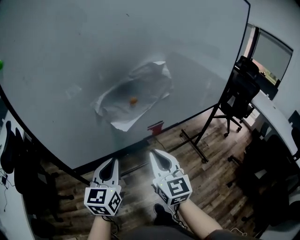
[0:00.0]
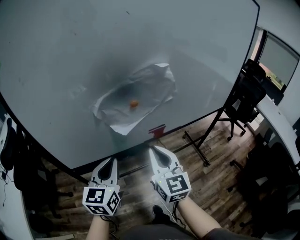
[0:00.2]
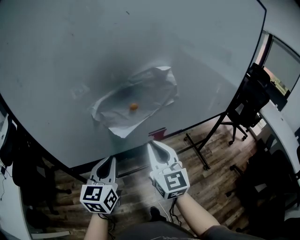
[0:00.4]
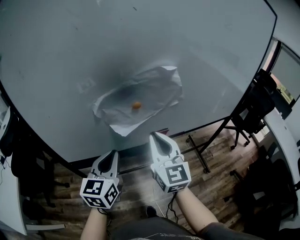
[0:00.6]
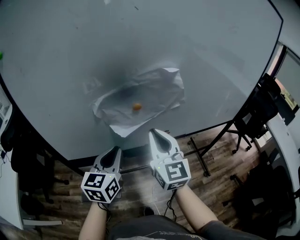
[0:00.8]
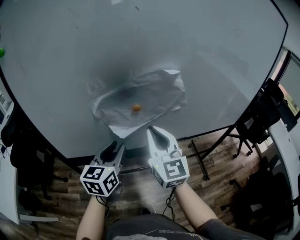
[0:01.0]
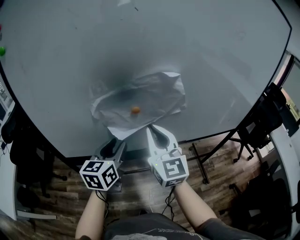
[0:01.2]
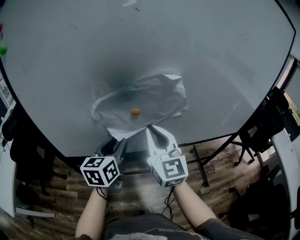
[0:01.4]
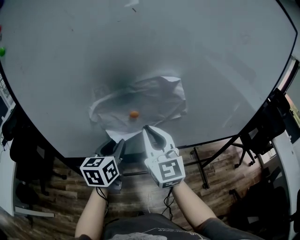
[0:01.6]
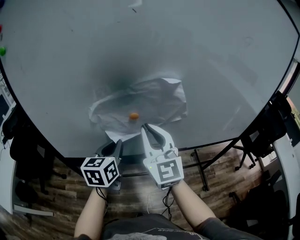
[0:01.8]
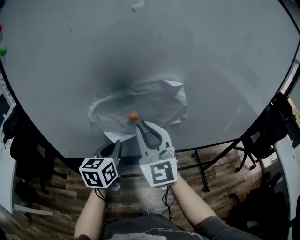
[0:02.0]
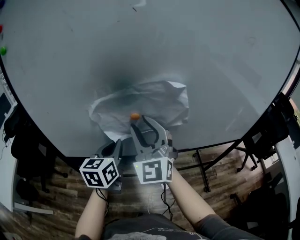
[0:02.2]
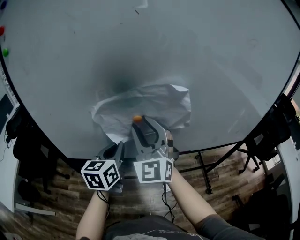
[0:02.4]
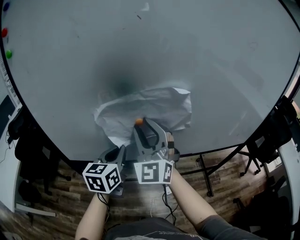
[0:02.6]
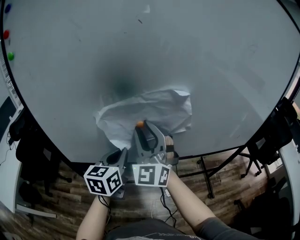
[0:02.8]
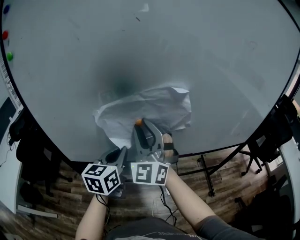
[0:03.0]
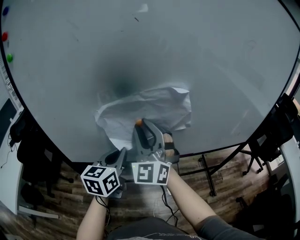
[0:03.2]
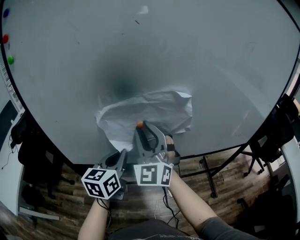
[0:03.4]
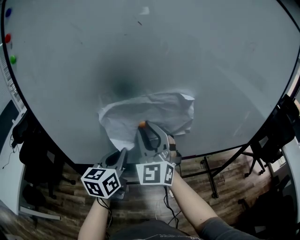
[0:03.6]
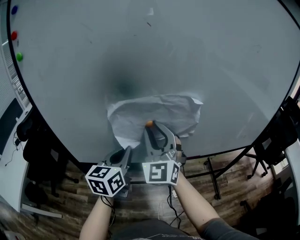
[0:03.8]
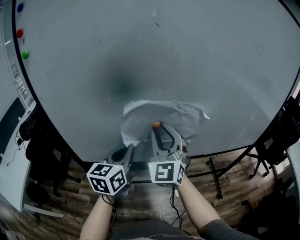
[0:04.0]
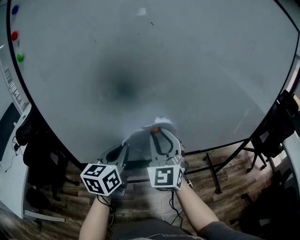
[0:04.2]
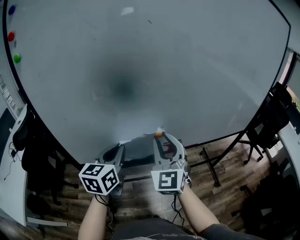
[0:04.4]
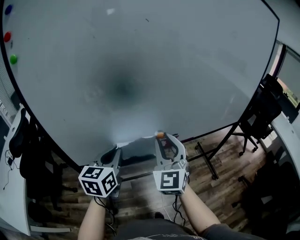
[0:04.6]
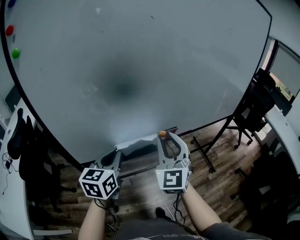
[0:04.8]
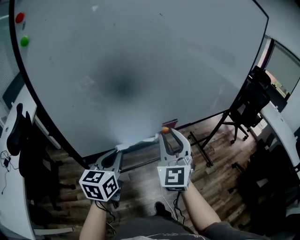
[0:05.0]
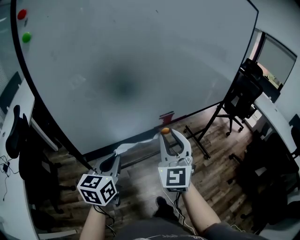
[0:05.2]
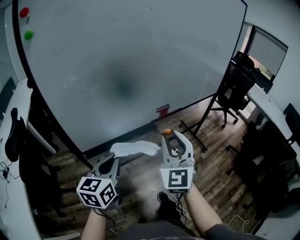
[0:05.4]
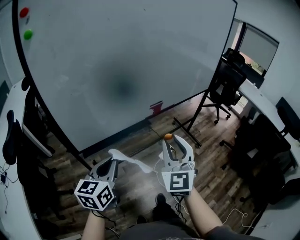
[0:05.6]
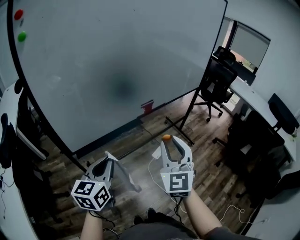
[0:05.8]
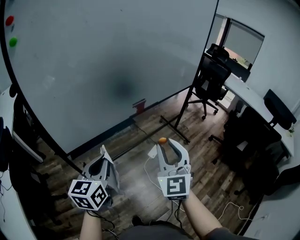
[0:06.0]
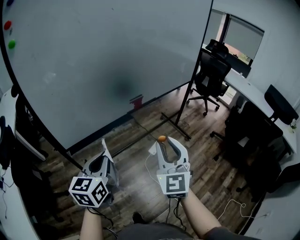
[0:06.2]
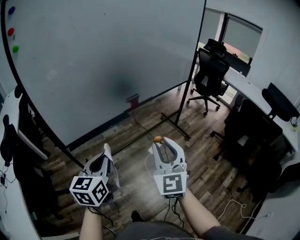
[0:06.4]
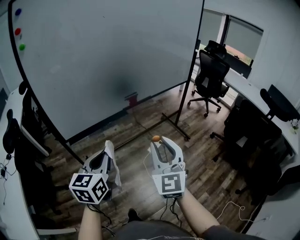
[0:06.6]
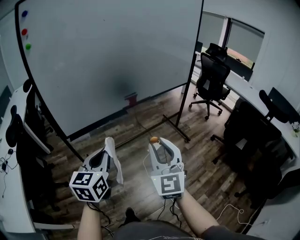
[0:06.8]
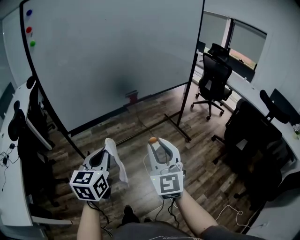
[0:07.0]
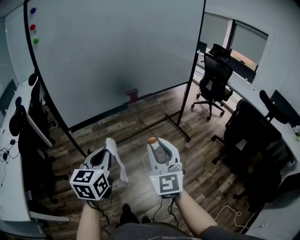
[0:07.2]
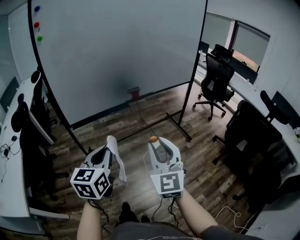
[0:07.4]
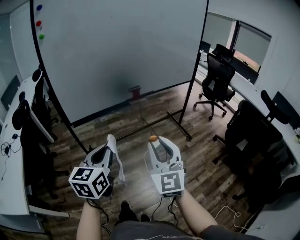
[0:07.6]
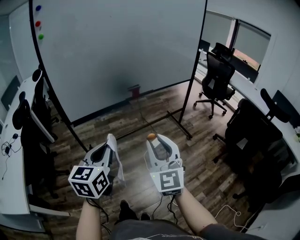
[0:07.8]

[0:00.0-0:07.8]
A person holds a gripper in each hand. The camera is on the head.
0:00.0 to 0:01.6: The left gripper shifts some 15 cm forward and to the right, and opens. The right gripper goes some 15 cm forward and upward, and turns by some 20 degrees.
0:01.6 to 0:03.2: The right gripper ends up approximately 5 cm from where it was, swivels about 40 degrees, and opens its fingers. Meanwhile the left gripper closes up.
0:03.2 to 0:04.6: The left gripper is displaced to the left by some 5 cm; the right gripper moves backward, about 5 cm, and changes its angle by about 20 degrees.
0:04.6 to 0:06.2: The grippers both shift backward by approximately 25 cm. The right gripper swivels roughly 20 degrees.
0:06.2 to 0:07.8: The grippers both shift backward and to the right by approximately 20 cm.

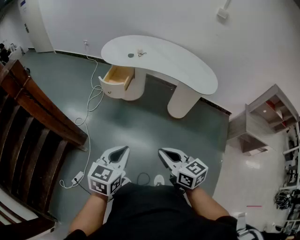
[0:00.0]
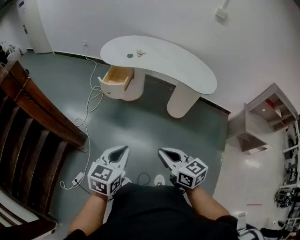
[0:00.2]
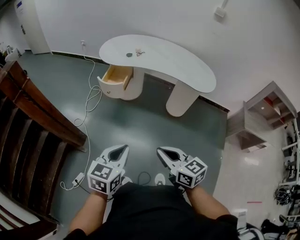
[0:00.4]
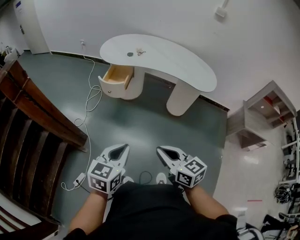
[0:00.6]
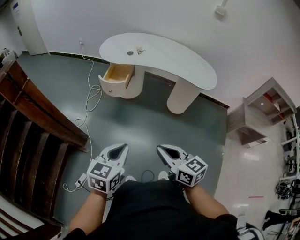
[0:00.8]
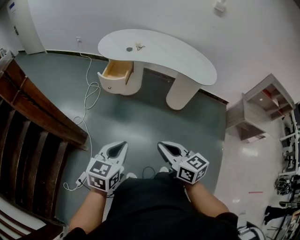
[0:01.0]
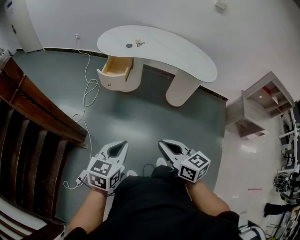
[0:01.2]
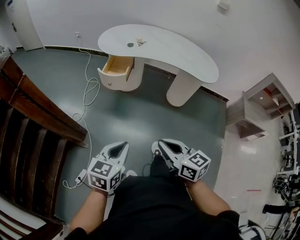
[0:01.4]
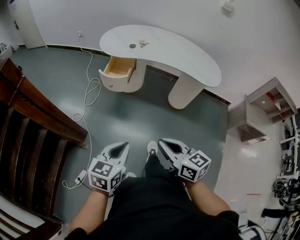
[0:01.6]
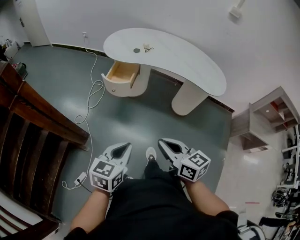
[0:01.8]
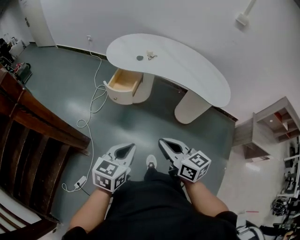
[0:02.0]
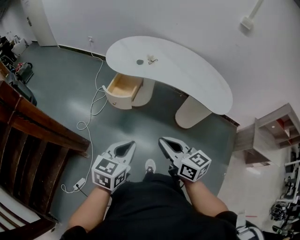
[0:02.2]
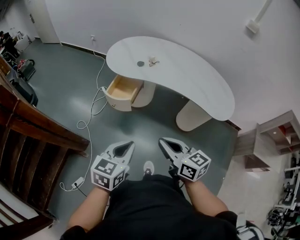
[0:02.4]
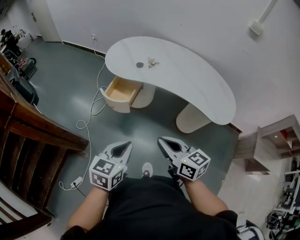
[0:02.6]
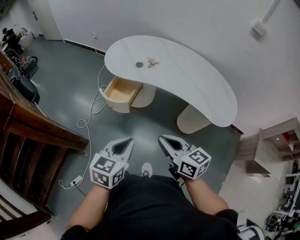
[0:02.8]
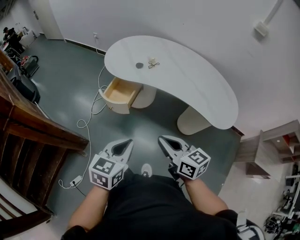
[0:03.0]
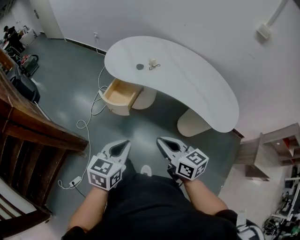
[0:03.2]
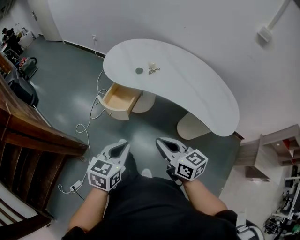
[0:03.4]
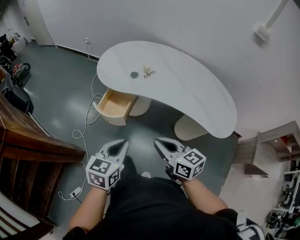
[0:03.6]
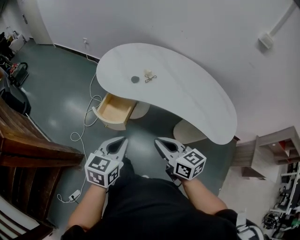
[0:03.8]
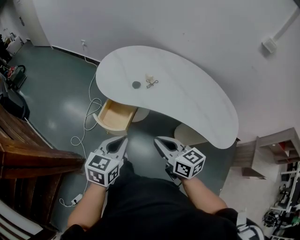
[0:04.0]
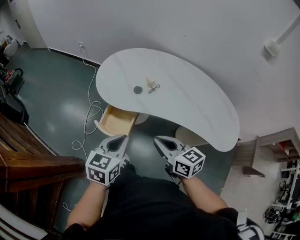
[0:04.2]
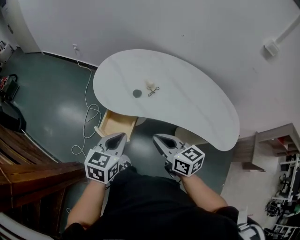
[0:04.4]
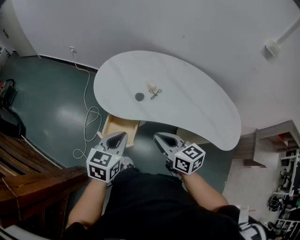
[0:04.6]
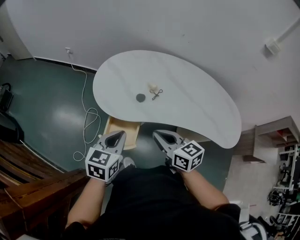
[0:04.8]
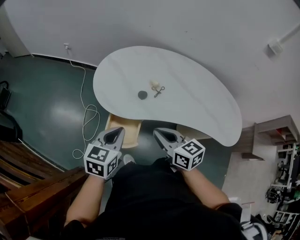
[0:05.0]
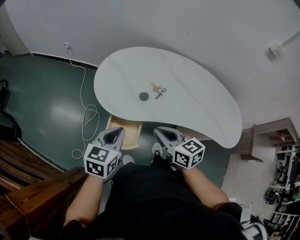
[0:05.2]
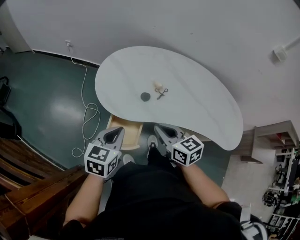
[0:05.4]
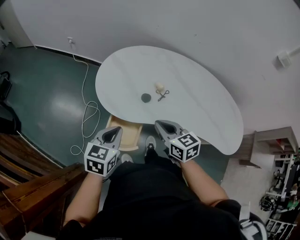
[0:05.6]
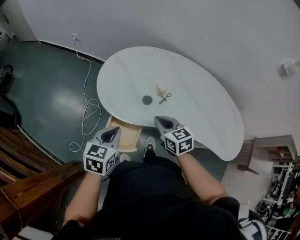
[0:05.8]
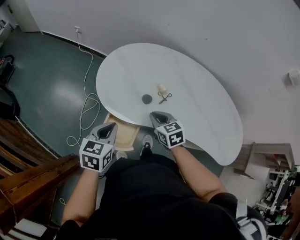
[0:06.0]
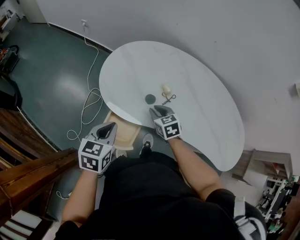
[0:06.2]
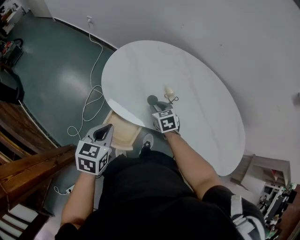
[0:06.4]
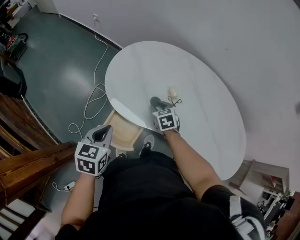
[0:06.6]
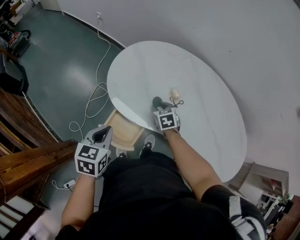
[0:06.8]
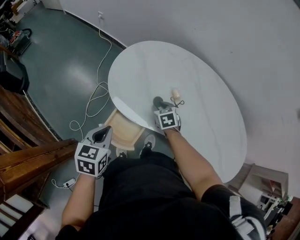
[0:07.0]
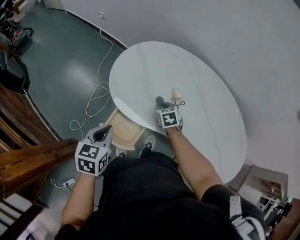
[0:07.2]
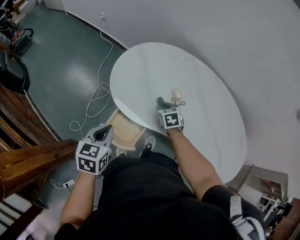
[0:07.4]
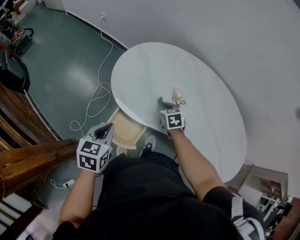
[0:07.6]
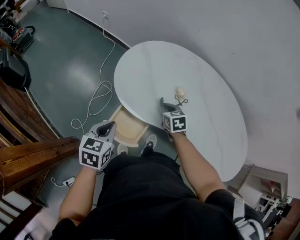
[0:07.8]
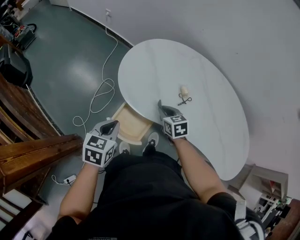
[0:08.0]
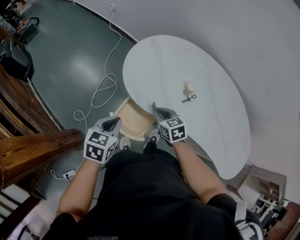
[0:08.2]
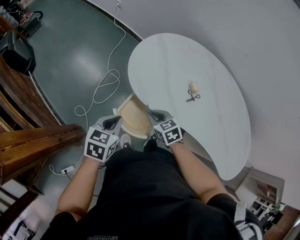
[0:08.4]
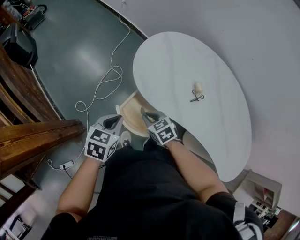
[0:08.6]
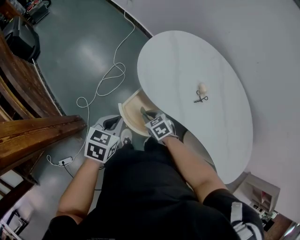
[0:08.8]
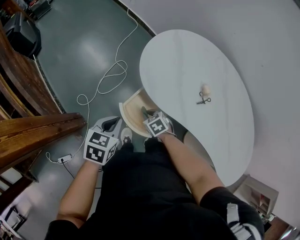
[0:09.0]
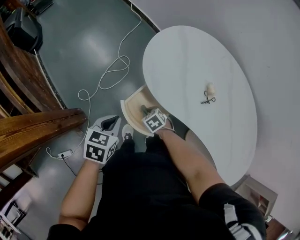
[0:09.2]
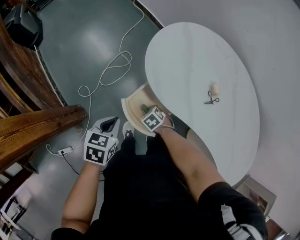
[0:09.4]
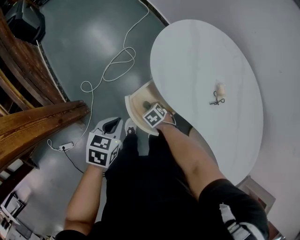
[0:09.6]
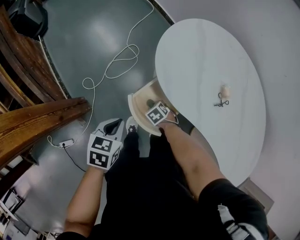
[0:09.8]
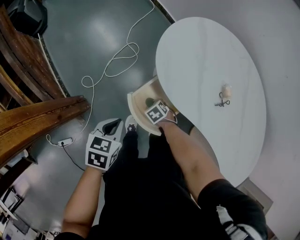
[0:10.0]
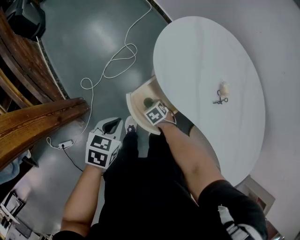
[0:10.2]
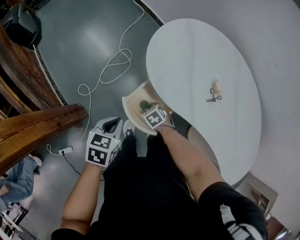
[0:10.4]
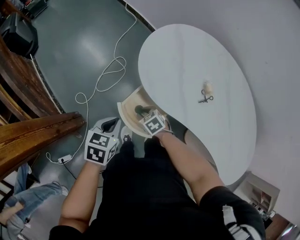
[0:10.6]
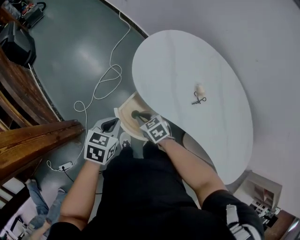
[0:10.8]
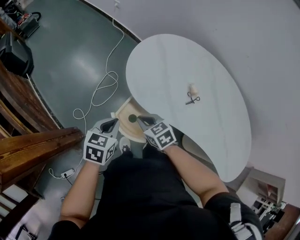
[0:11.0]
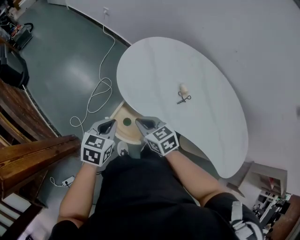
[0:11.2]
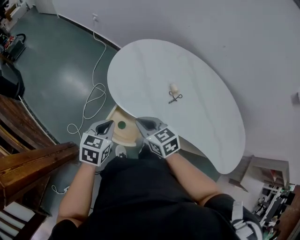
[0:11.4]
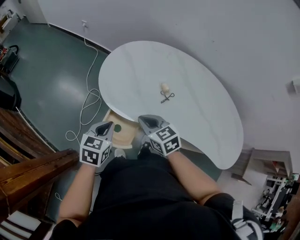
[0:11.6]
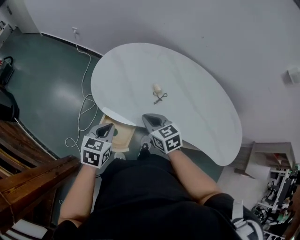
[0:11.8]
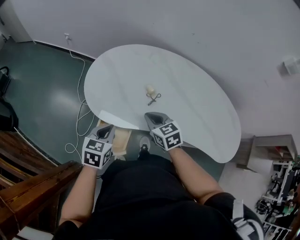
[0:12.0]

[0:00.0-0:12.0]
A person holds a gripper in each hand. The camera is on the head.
0:00.0 to 0:01.6: Both grippers move to the left, about 10 cm.
0:01.6 to 0:03.0: The grippers both shift forward and to the right by roughly 30 cm.
0:03.0 to 0:04.4: The grippers both shift forward by approximately 30 cm.
0:04.4 to 0:06.0: The right gripper is displaced forward and downward by some 25 cm, and rotates approximately 30 degrees. The left gripper heads forward, to the left and downward, covering approximately 15 cm.
0:06.0 to 0:07.6: The right gripper moves forward and downward, some 10 cm. Meanwhile the left gripper ends up approximately 5 cm from where it was.
0:07.6 to 0:09.0: The right gripper is displaced to the left, downward and backward by approximately 25 cm, and swivels roughly 30 degrees. Meanwhile the left gripper is displaced downward and to the left by approximately 10 cm.
0:09.0 to 0:10.4: The left gripper ends up about 5 cm from where it was. Meanwhile the right gripper heads downward, covering some 5 cm.
0:10.4 to 0:12.0: The right gripper is displaced upward by about 30 cm, angles its fingers upward, by approximately 30 degrees, and closes. Meanwhile the left gripper changes place by roughly 20 cm, and changes its angle by about 30 degrees.

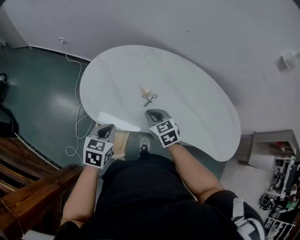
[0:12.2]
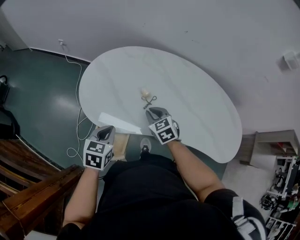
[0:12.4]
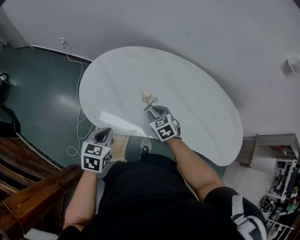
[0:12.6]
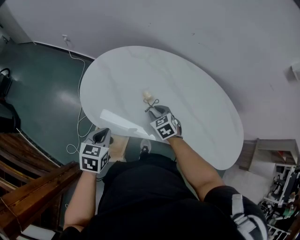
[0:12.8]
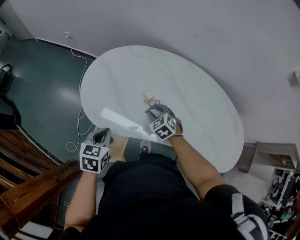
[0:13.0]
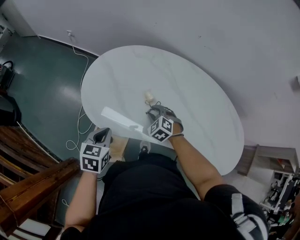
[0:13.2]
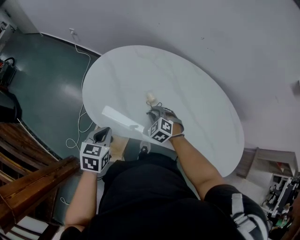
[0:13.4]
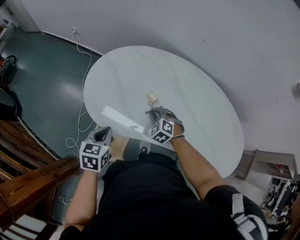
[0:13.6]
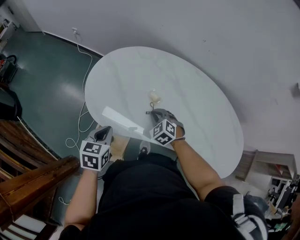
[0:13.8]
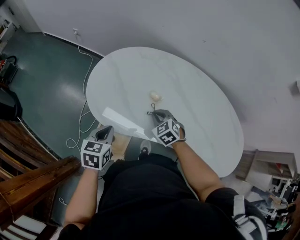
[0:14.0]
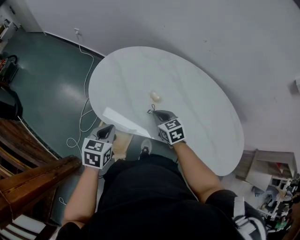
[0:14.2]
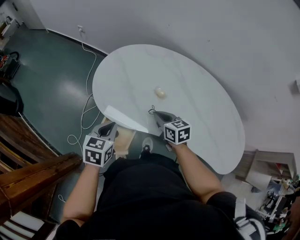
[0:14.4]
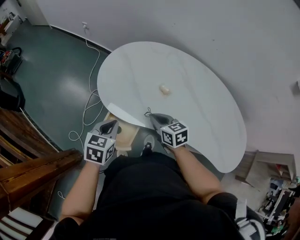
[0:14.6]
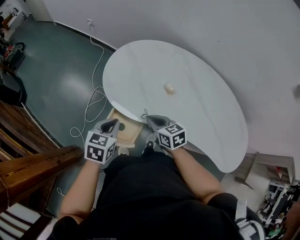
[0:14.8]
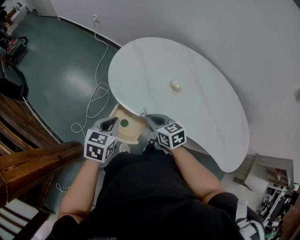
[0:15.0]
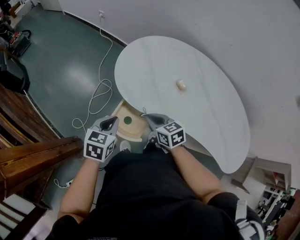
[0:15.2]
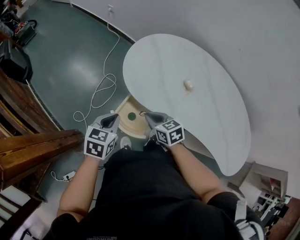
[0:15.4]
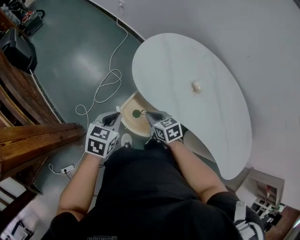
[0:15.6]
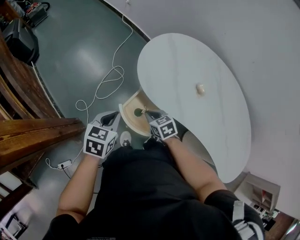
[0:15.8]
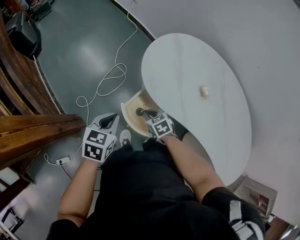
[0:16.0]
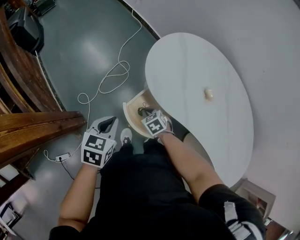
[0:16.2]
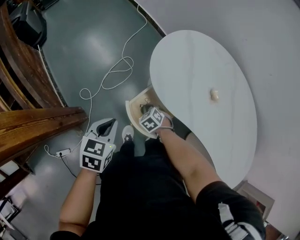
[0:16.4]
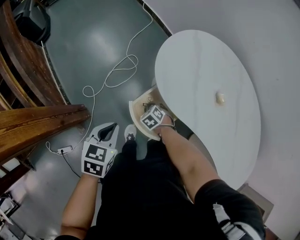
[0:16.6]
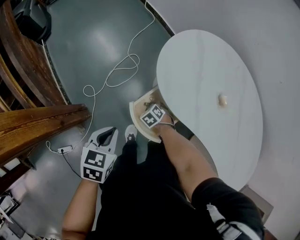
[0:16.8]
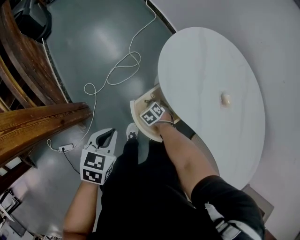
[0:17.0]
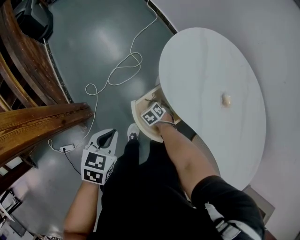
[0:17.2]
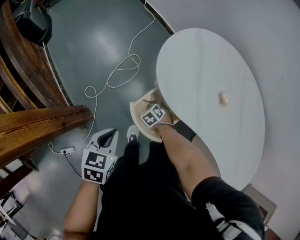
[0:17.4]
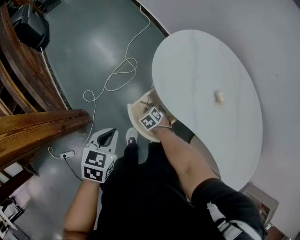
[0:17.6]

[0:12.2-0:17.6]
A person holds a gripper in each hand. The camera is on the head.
0:12.2 to 0:13.6: The right gripper heads downward and forward, covering some 10 cm, and rotates approximately 40 degrees.
0:13.6 to 0:15.0: The left gripper heads to the left and backward, covering roughly 10 cm. Meanwhile the right gripper heads to the left, backward and upward, covering about 20 cm, and rolls clockwise, seen from behind, by approximately 40 degrees.
0:15.0 to 0:16.2: The right gripper heads downward and to the left, covering some 20 cm, and turns by roughly 40 degrees; the left gripper moves to the left, approximately 15 cm.
0:16.2 to 0:17.6: The right gripper goes about 10 cm downward.
